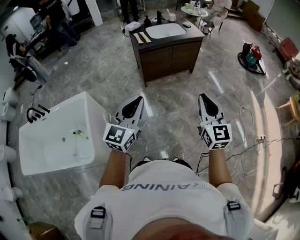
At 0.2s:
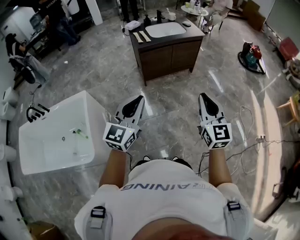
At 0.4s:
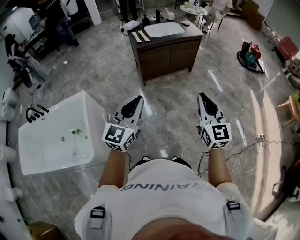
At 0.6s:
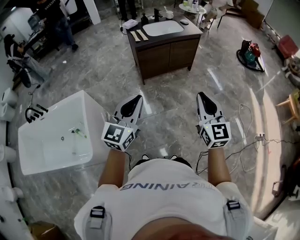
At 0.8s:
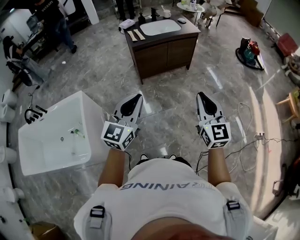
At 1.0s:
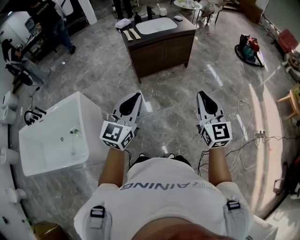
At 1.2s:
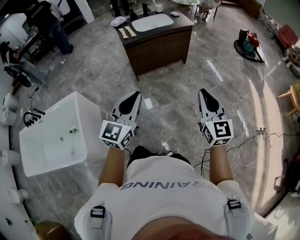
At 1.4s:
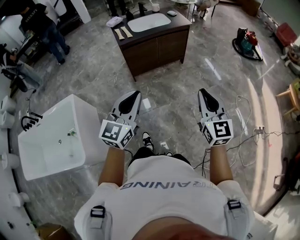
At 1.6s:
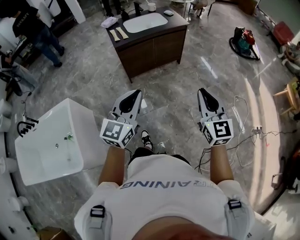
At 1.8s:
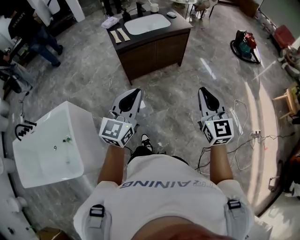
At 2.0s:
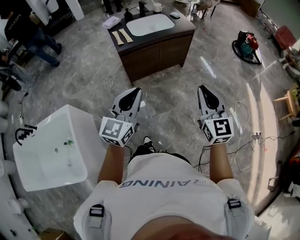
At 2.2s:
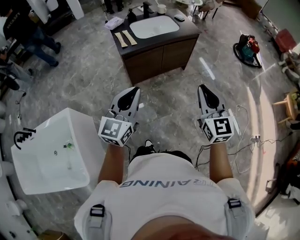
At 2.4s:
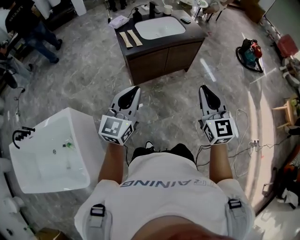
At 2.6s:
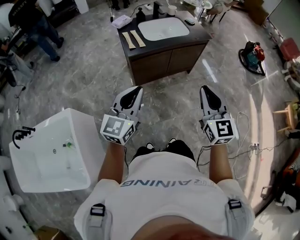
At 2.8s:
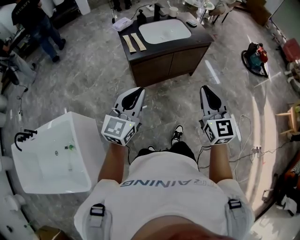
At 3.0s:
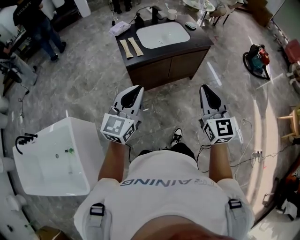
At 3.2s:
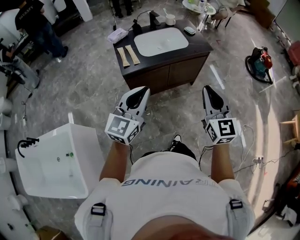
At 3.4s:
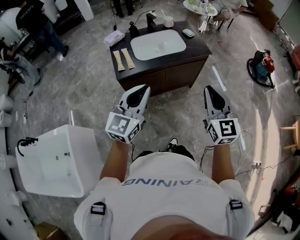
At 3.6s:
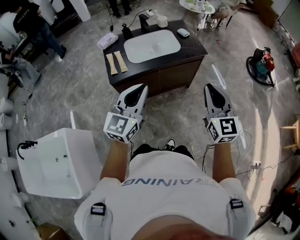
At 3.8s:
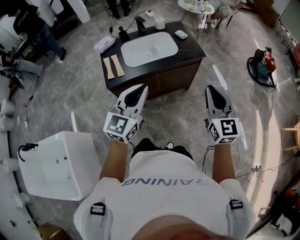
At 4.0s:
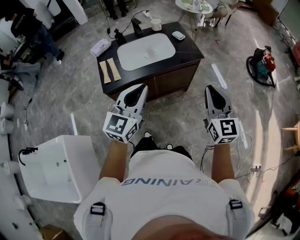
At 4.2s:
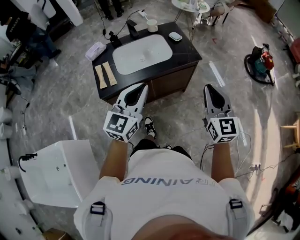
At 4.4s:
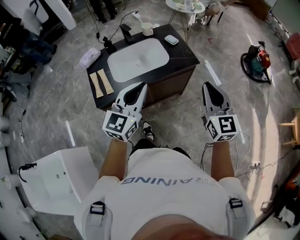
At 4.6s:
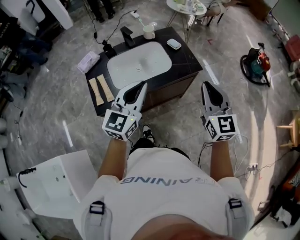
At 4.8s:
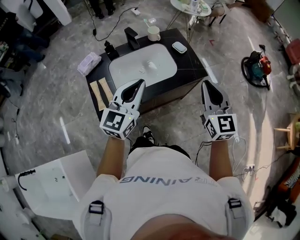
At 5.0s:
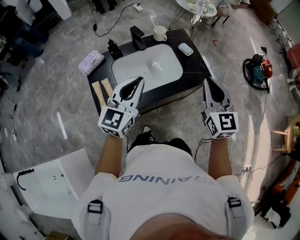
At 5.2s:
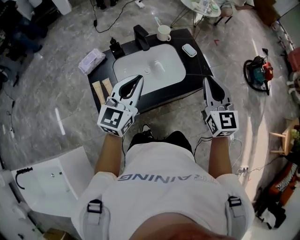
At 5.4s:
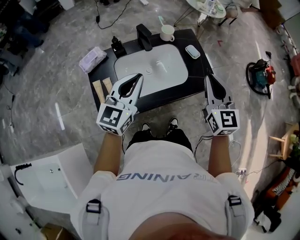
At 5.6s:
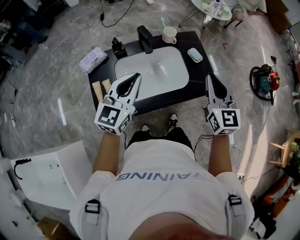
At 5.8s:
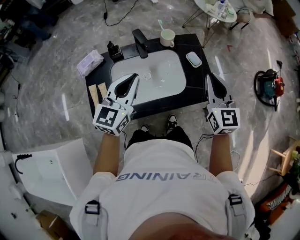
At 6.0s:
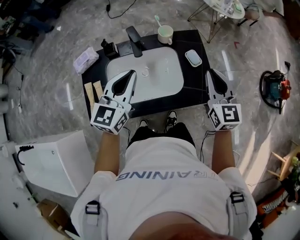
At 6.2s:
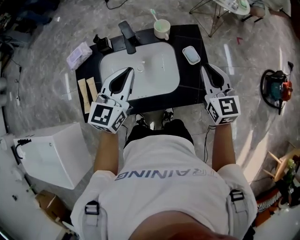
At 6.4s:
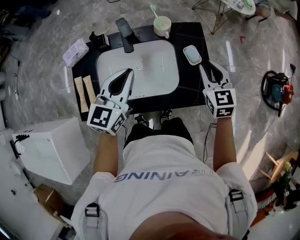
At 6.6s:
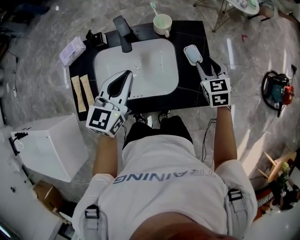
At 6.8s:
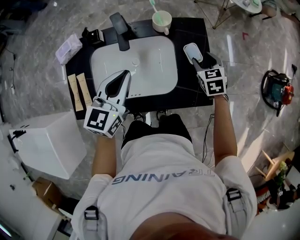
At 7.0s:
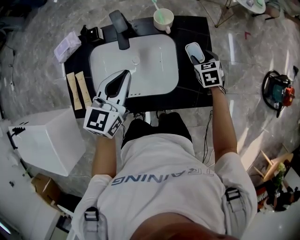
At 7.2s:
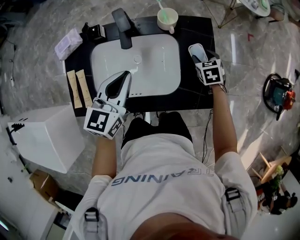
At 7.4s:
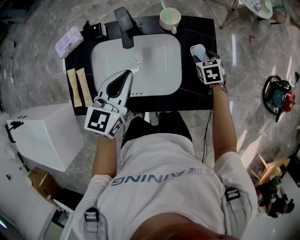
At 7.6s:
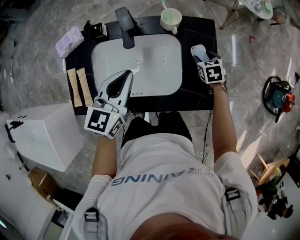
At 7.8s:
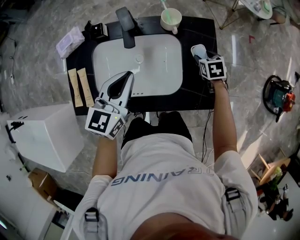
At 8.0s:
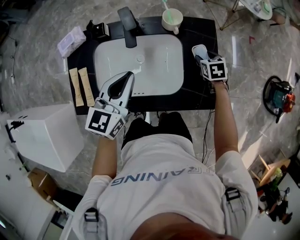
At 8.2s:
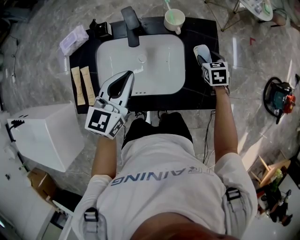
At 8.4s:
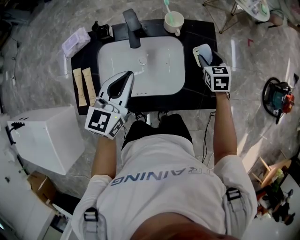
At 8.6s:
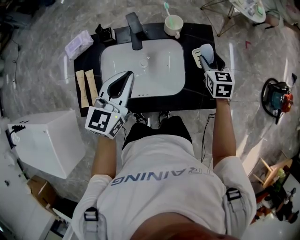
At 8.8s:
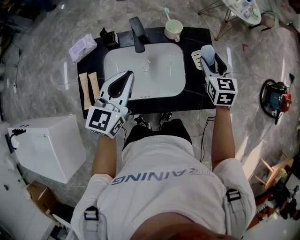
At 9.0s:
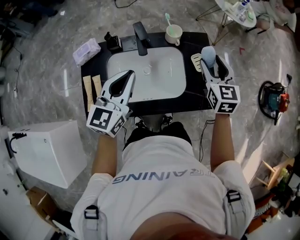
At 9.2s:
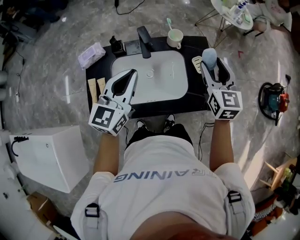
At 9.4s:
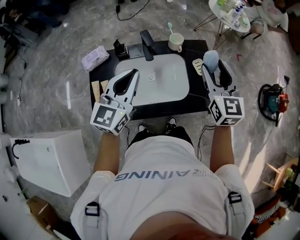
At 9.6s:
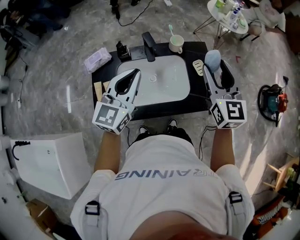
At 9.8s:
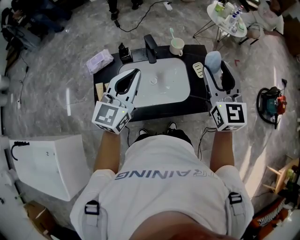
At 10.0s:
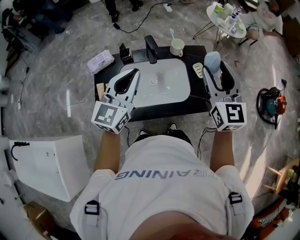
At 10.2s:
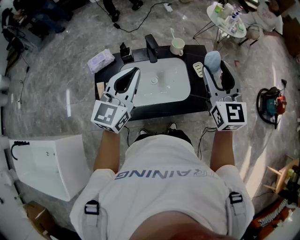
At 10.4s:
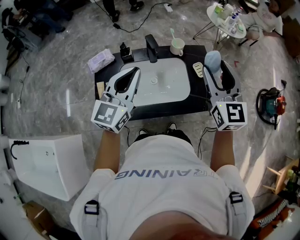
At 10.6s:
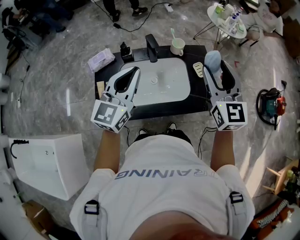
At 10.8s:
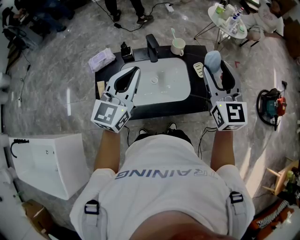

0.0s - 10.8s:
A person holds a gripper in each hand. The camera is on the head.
0.0s - 1.6s: The left gripper shifts approximately 15 cm forward and to the right, while the right gripper moves to the right and forward, approximately 15 cm.
1.6s - 3.0s: The grippers both shift forward and to the left by about 35 cm.
3.0s - 4.6s: The two grippers go some 35 cm forward.
4.6s - 6.2s: The grippers both shift forward by roughly 30 cm. The right gripper turns by approximately 20 degrees. The left gripper changes its angle by about 20 degrees.
6.2s - 7.8s: The right gripper shifts some 30 cm downward and forward, points its fingers roughly 40 degrees further downward, and opens, while the left gripper is displaced downward by some 10 cm.
7.8s - 9.2s: The left gripper travels upward by roughly 10 cm, while the right gripper heads upward, covering about 30 cm, and tips its fingers upward by approximately 40 degrees.
9.2s - 10.8s: The right gripper goes approximately 15 cm upward and backward. The left gripper is displaced upward by about 5 cm.

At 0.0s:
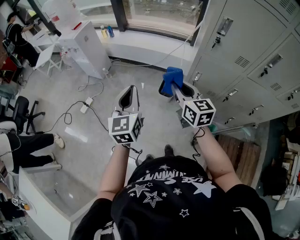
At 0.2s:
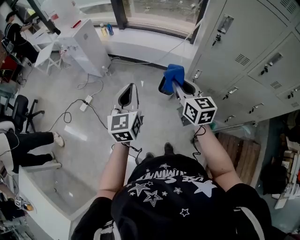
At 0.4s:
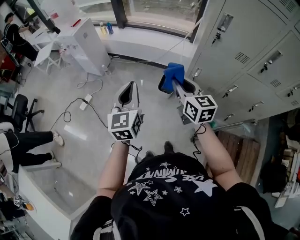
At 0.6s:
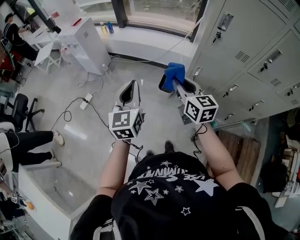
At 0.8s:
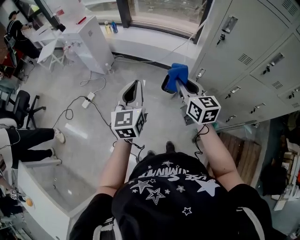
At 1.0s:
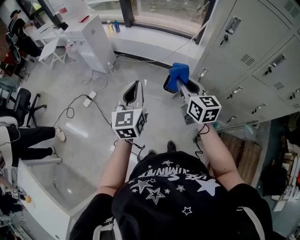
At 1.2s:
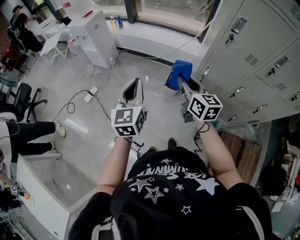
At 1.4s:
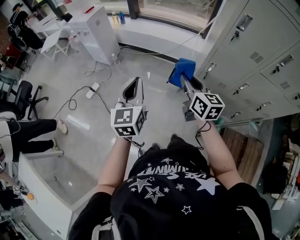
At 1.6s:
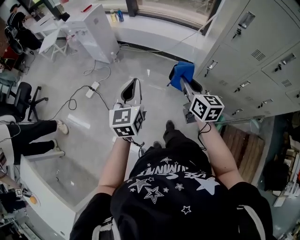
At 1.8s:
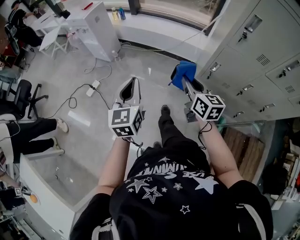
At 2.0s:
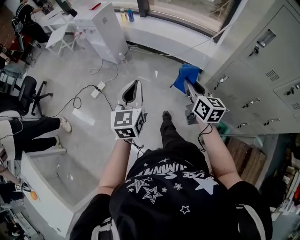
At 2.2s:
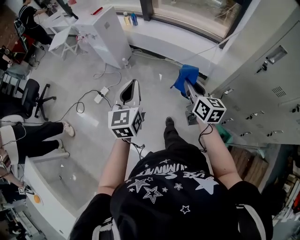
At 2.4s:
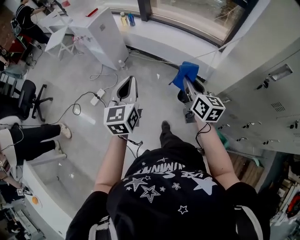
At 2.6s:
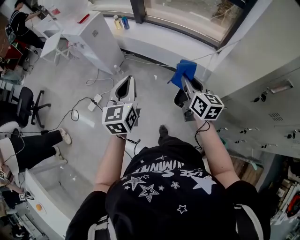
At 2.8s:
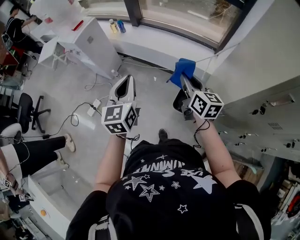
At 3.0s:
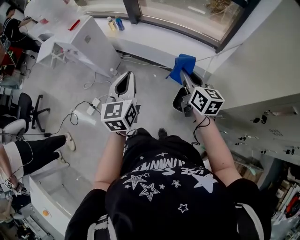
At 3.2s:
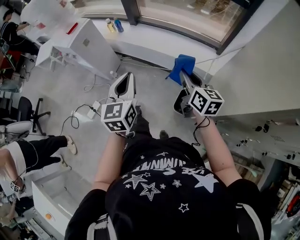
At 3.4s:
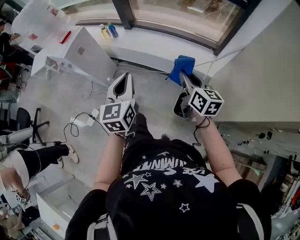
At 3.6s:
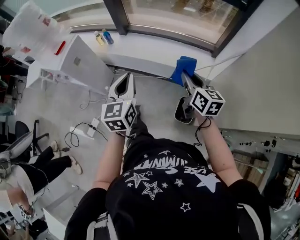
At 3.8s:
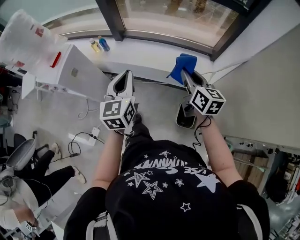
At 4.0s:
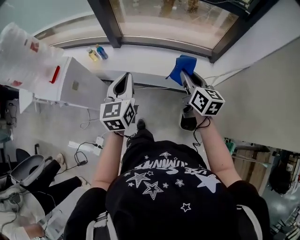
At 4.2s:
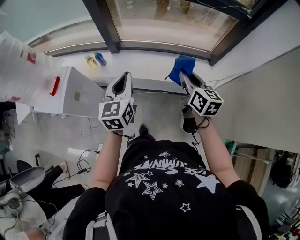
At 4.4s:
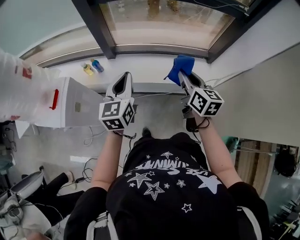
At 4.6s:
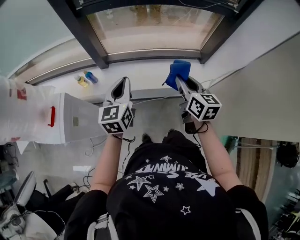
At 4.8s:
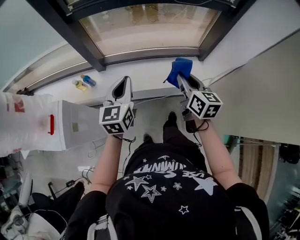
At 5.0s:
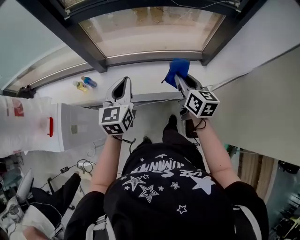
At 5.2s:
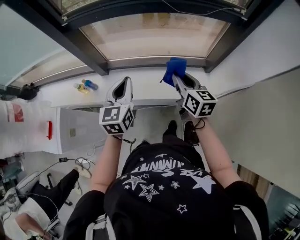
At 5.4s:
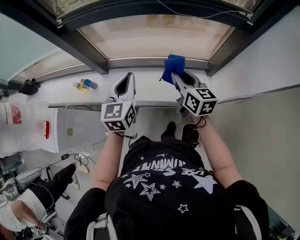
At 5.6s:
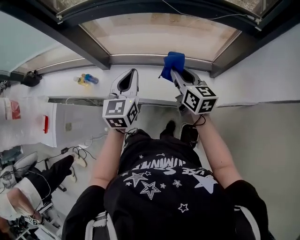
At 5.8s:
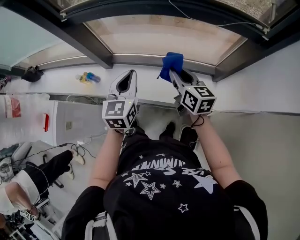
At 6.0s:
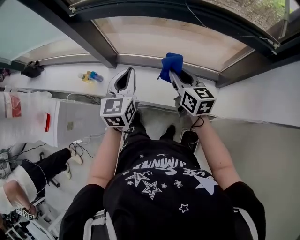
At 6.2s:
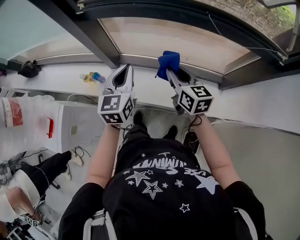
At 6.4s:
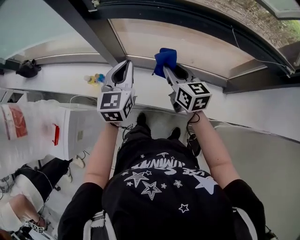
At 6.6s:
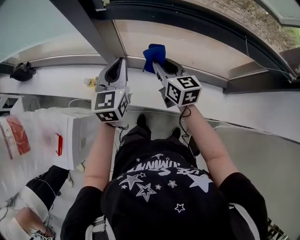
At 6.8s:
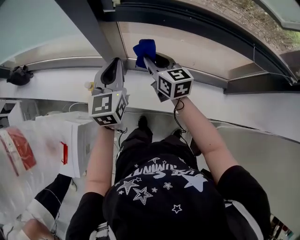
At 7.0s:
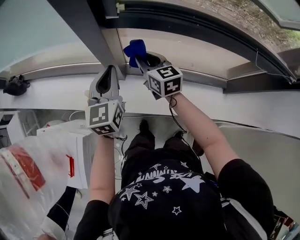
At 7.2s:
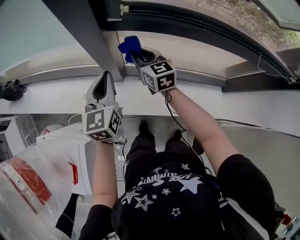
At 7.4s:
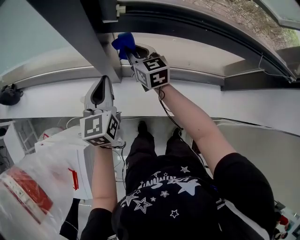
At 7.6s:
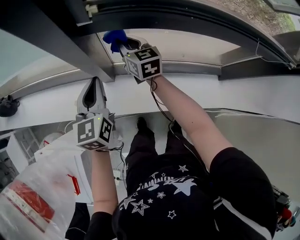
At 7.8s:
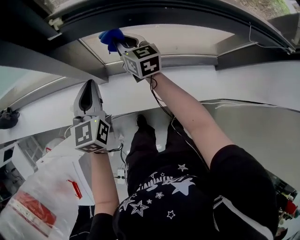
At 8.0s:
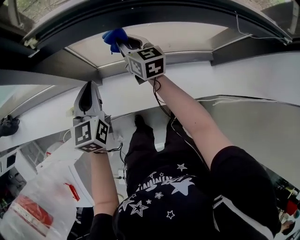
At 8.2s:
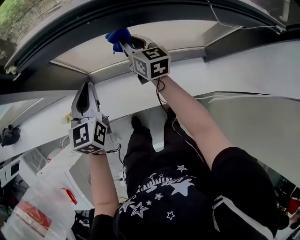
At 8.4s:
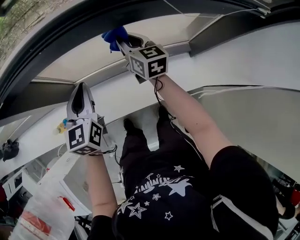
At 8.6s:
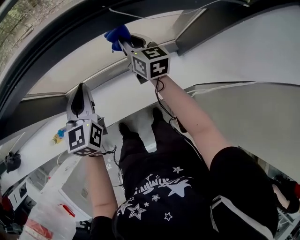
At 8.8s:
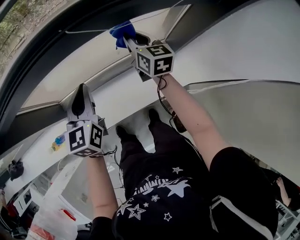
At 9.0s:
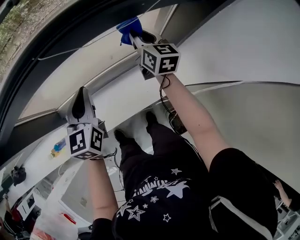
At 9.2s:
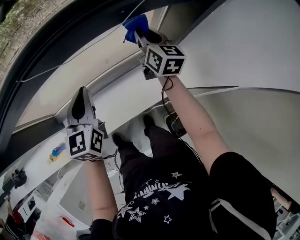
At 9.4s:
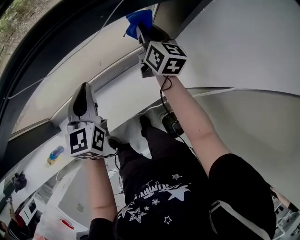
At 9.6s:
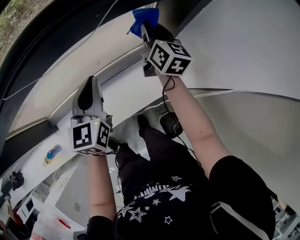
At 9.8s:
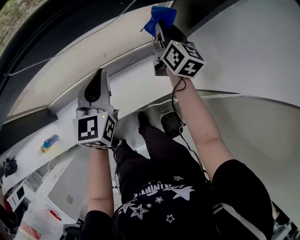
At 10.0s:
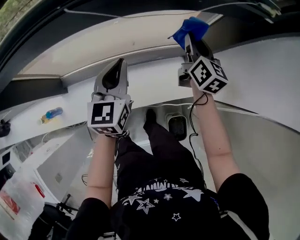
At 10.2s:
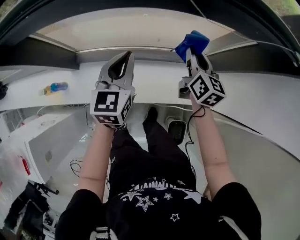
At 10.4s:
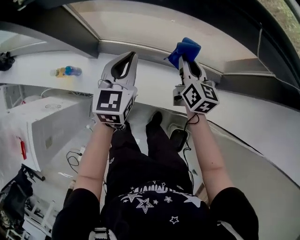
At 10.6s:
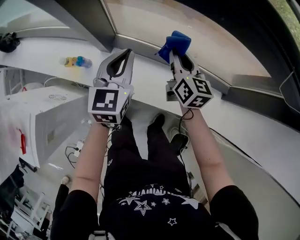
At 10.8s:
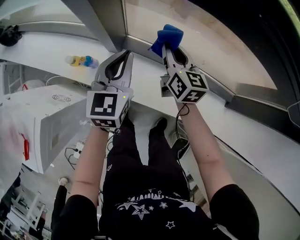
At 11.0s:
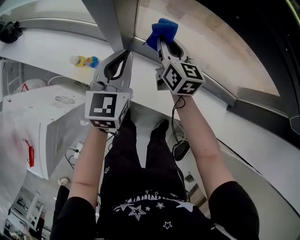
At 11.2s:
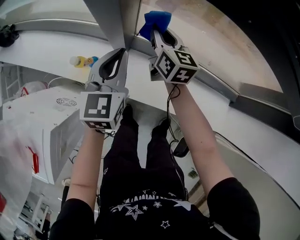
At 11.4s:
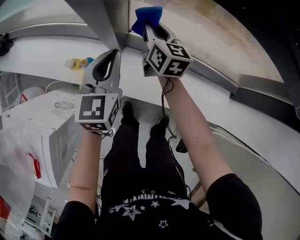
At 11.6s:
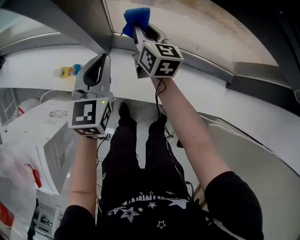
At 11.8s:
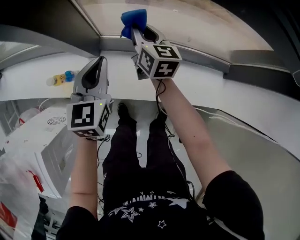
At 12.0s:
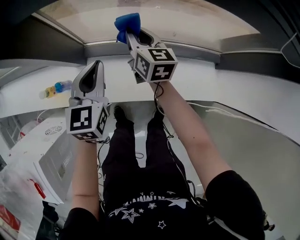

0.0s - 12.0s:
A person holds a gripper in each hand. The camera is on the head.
0.0s - 1.6s: The two grippers go about 5 cm to the left.
1.6s - 3.0s: Both grippers travel together forward, roughly 35 cm.
3.0s - 4.4s: Both grippers move forward, about 35 cm. The right gripper rotates about 20 degrees. Meanwhile the left gripper rotates about 20 degrees.
4.4s - 6.0s: The right gripper shifts some 25 cm forward, while the left gripper is displaced forward and to the right by some 25 cm.
6.0s - 7.6s: The right gripper is displaced forward and to the left by some 40 cm, while the left gripper is displaced to the left and forward by roughly 30 cm.
7.6s - 9.0s: The two grippers travel together, roughly 50 cm. The left gripper turns by roughly 20 degrees; the right gripper swivels approximately 40 degrees.
9.0s - 10.4s: The right gripper changes place by some 25 cm, and rotates some 20 degrees, while the left gripper ends up about 15 cm from where it was.
10.4s - 12.0s: The right gripper is displaced to the left and forward by about 20 cm; the left gripper travels to the left and downward by about 10 cm.

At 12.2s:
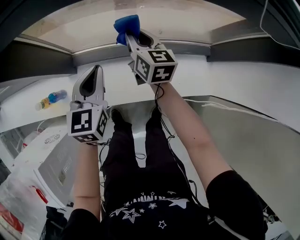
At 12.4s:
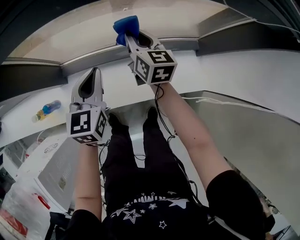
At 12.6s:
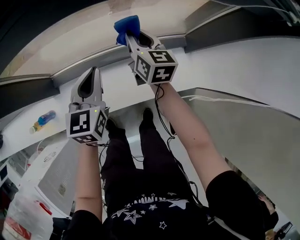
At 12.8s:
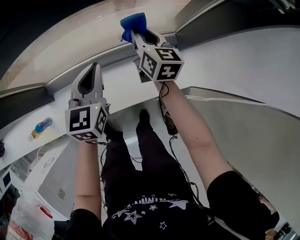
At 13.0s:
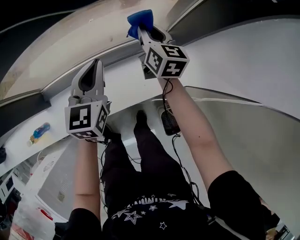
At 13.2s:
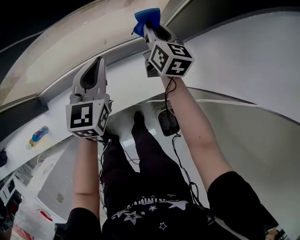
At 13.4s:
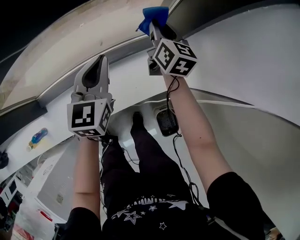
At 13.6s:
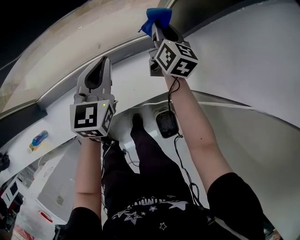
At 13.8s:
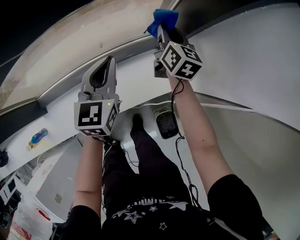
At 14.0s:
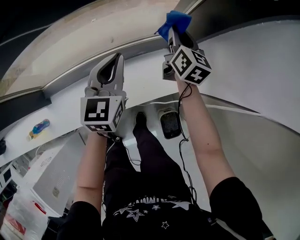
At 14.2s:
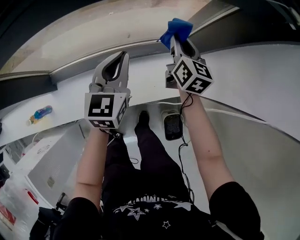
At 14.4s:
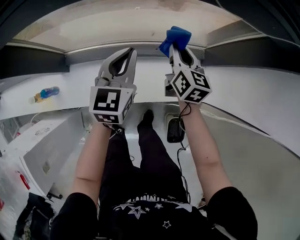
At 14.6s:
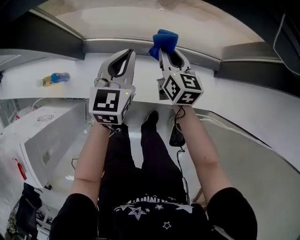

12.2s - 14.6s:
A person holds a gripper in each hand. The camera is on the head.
12.2s - 13.4s: The two grippers go about 40 cm to the right. The right gripper rotates roughly 30 degrees.
13.4s - 14.6s: The right gripper moves some 35 cm, and changes its angle by some 30 degrees. The left gripper moves some 25 cm.
